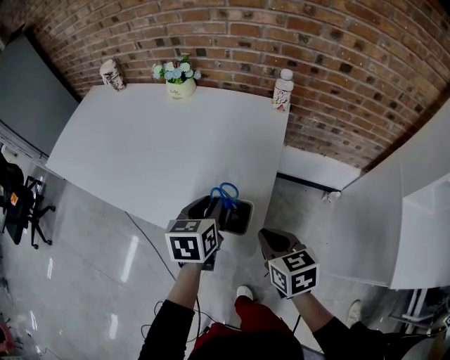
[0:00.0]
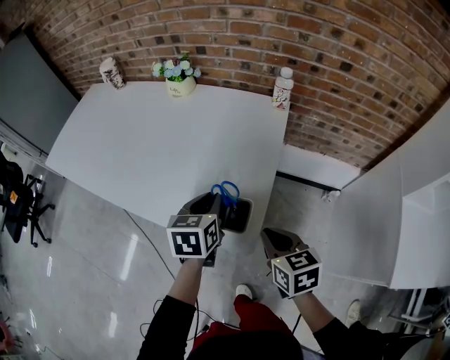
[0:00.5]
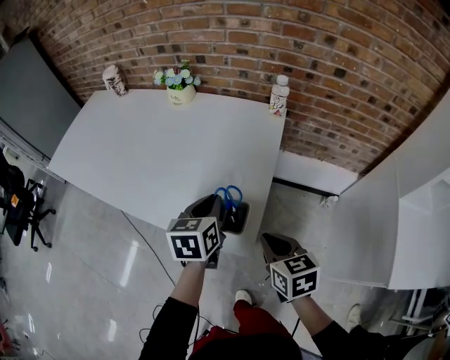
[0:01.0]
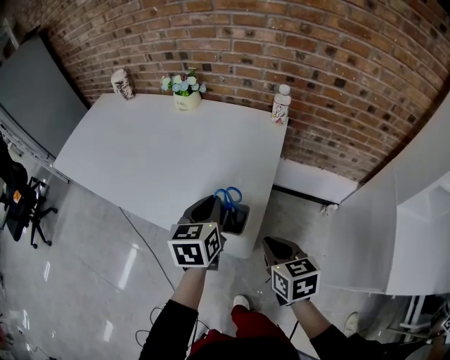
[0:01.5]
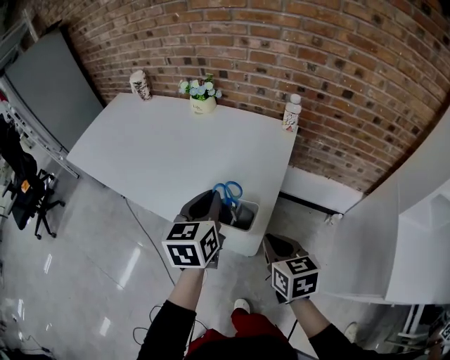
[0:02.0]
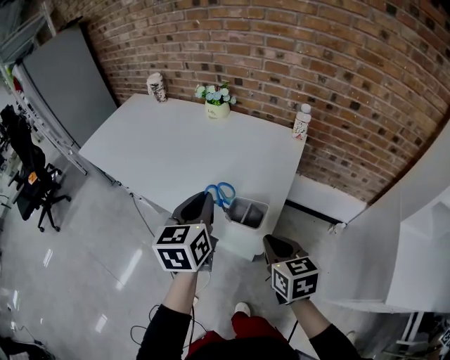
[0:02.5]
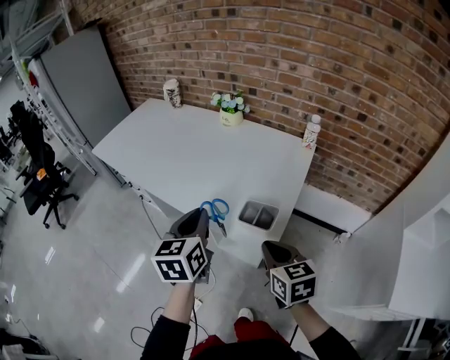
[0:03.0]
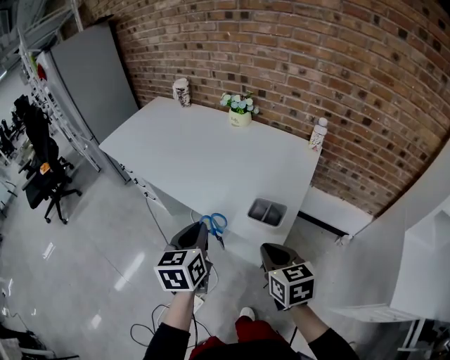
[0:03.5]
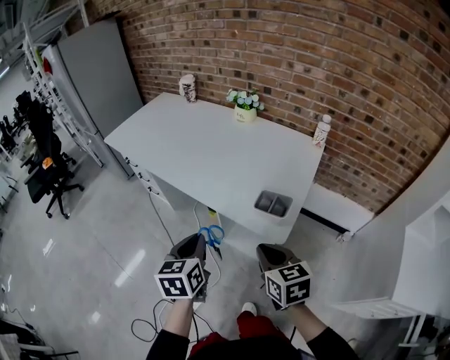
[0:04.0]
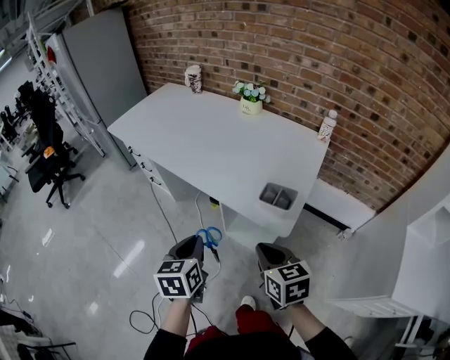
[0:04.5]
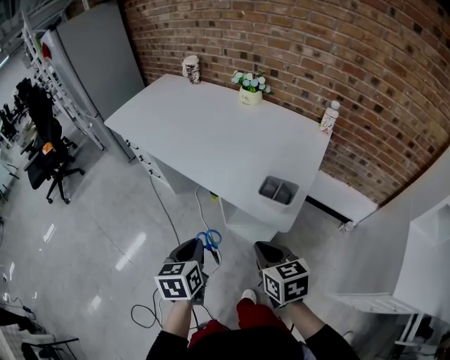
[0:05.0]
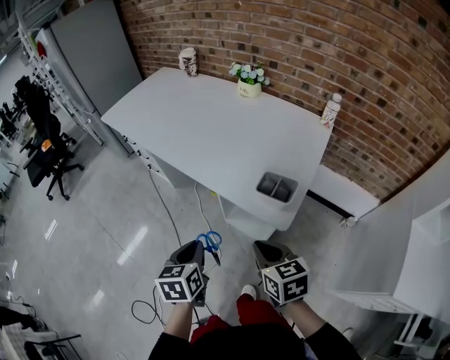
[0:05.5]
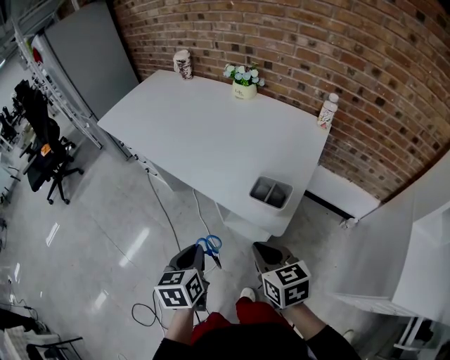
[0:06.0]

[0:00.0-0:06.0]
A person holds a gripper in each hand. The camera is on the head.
0:00.0 to 0:02.0: The left gripper is displaced upward by roughly 10 cm, and closes.
0:02.0 to 0:04.0: The left gripper shifts roughly 25 cm to the left and backward. The right gripper travels to the left and backward by approximately 15 cm.
0:04.0 to 0:06.0: The left gripper goes some 5 cm downward.

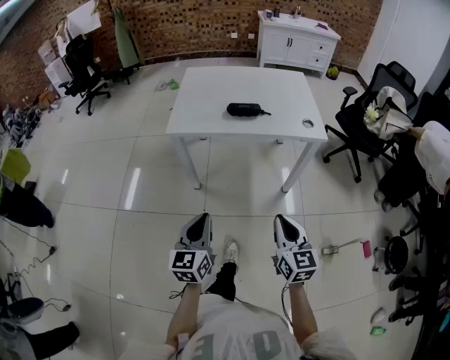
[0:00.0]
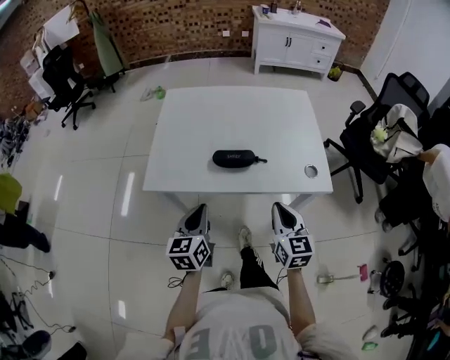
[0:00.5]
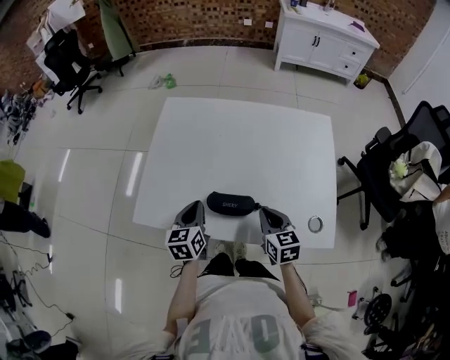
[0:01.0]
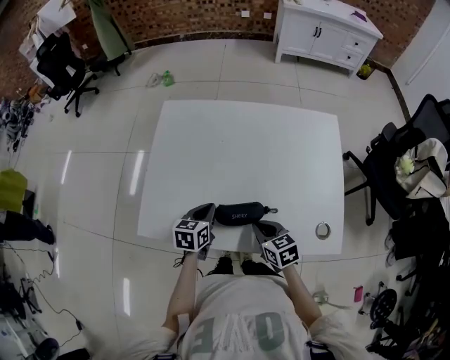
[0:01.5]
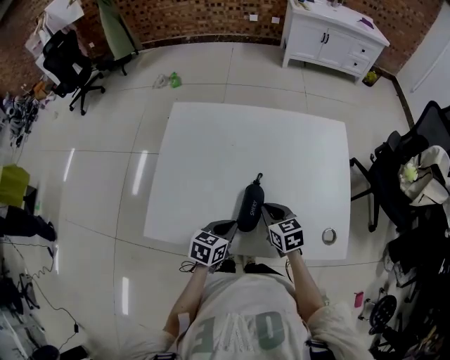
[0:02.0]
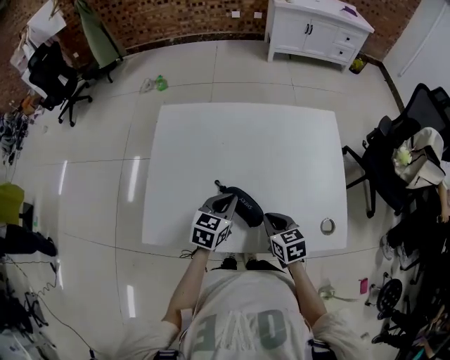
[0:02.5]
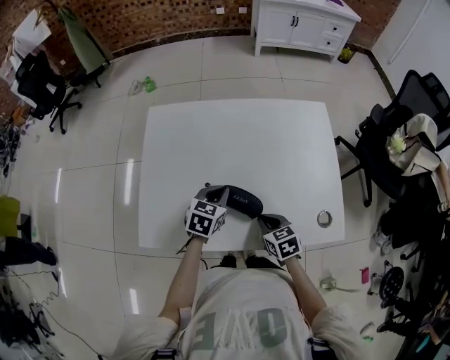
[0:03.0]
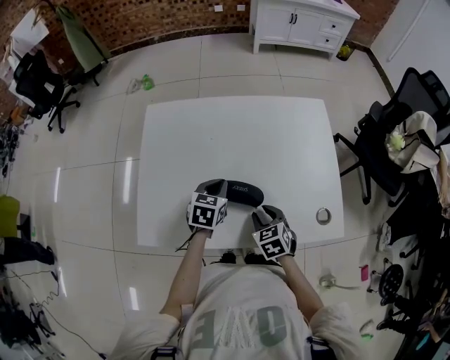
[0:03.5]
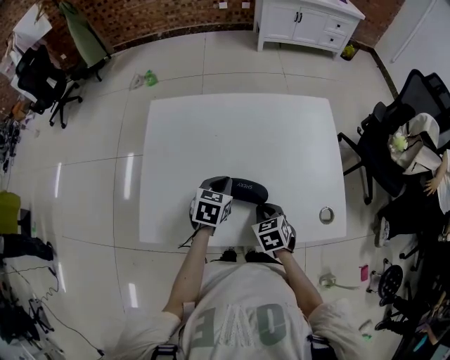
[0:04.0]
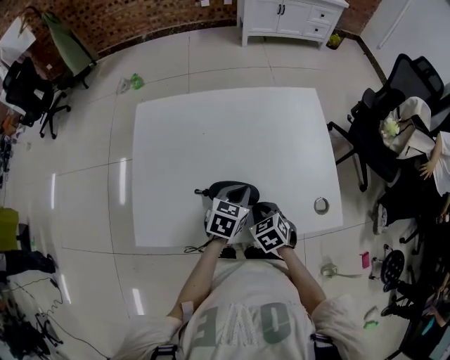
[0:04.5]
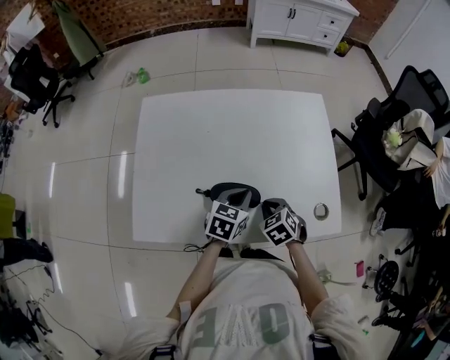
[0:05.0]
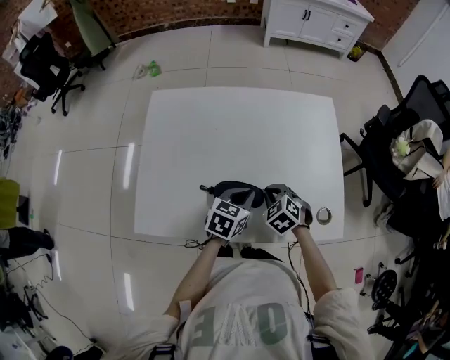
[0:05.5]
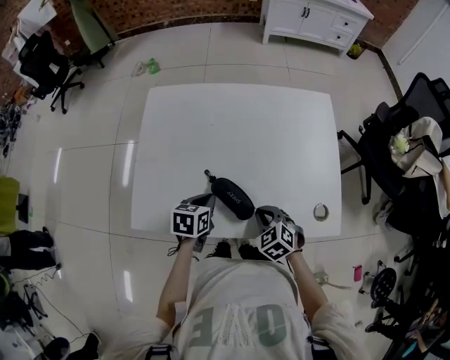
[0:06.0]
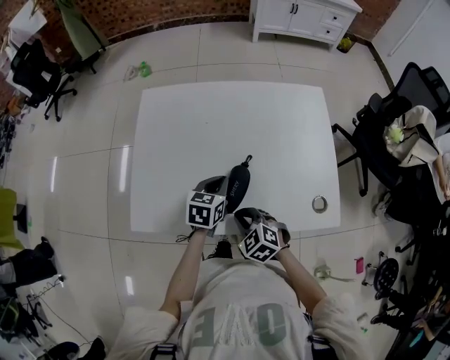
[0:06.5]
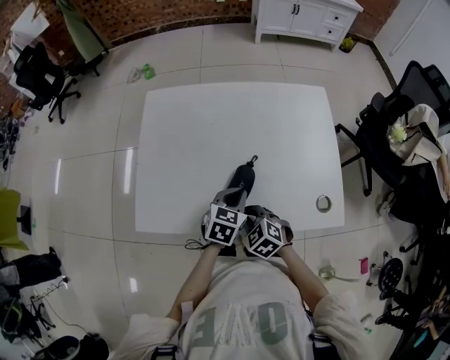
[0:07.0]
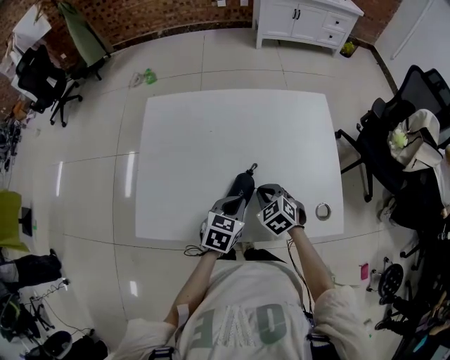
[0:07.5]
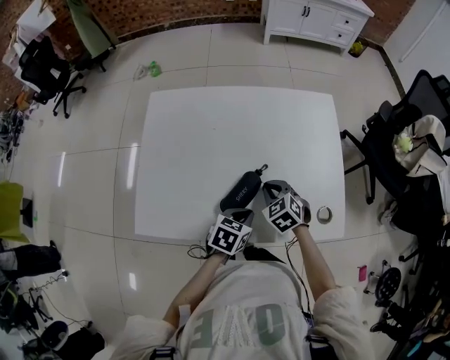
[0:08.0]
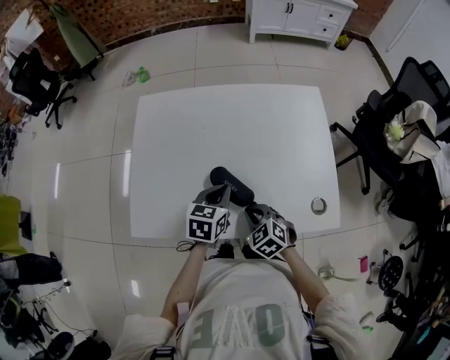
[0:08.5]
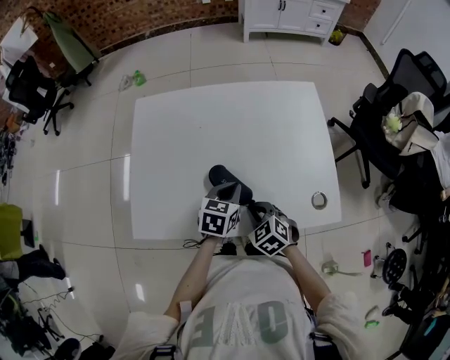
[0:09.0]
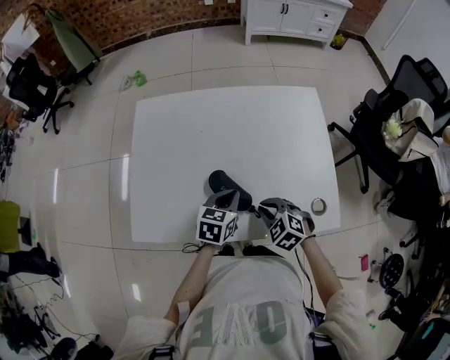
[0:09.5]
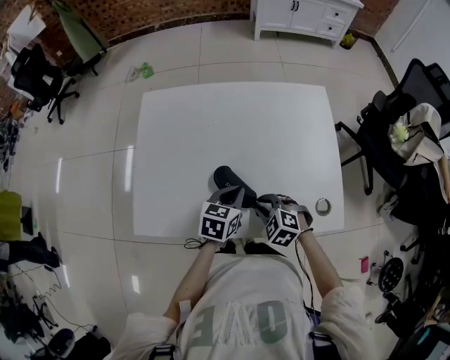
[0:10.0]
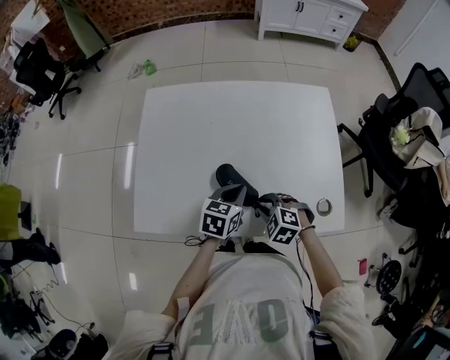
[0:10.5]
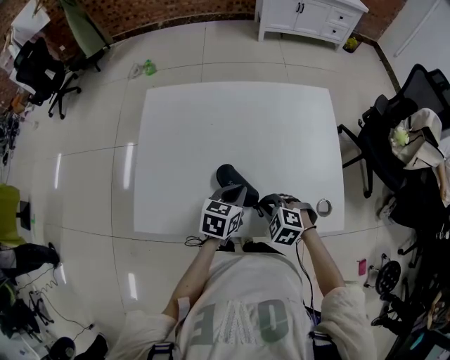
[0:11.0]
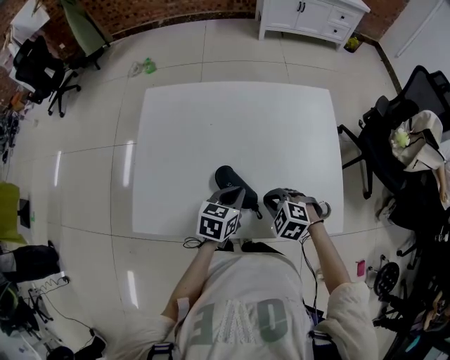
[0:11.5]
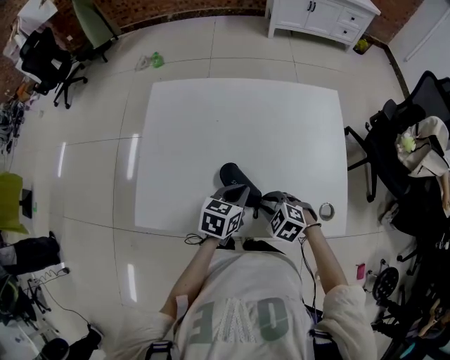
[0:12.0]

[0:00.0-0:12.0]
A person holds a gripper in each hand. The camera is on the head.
0:00.0 to 0:02.0: Both grippers are carried forward, about 60 cm. The left gripper changes its angle by some 40 degrees. The right gripper swivels approximately 30 degrees.
0:02.0 to 0:04.0: The left gripper is displaced forward by approximately 10 cm. The right gripper shifts by approximately 5 cm, swivels approximately 20 degrees, and opens and closes again.
0:04.0 to 0:06.0: The right gripper rotates about 30 degrees. Meanwhile the left gripper shifts about 10 cm backward, and reaches approximately 10 cm to the right, then returns.
0:06.0 to 0:08.0: The right gripper moves forward, roughly 10 cm. The left gripper heads to the right, covering roughly 10 cm.
0:08.0 to 0:10.0: The right gripper goes approximately 10 cm backward, and swivels some 20 degrees. The left gripper is displaced forward by some 5 cm.
0:10.0 to 0:12.0: The grippers move only a little.

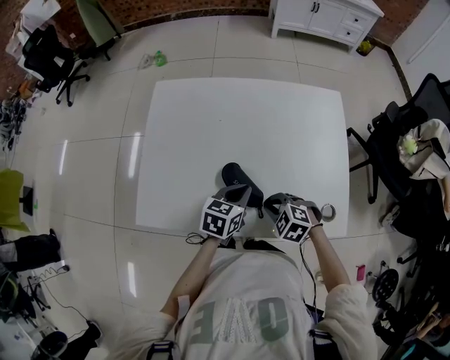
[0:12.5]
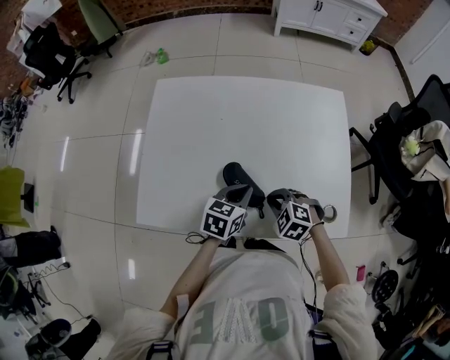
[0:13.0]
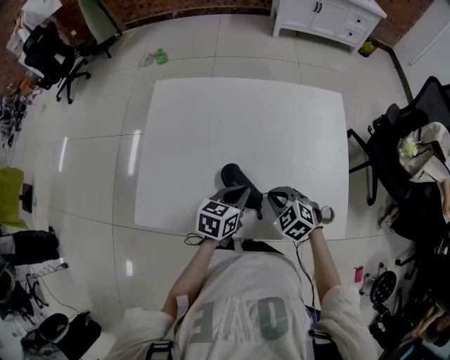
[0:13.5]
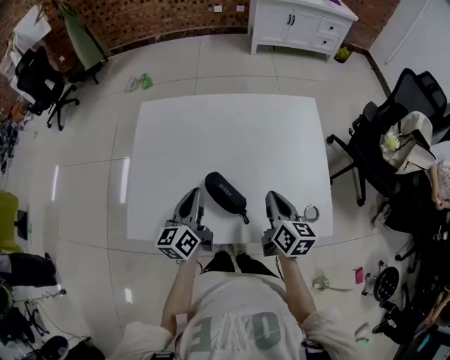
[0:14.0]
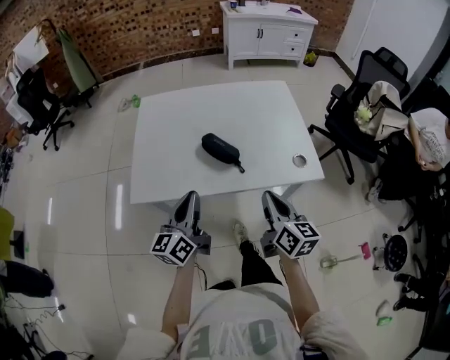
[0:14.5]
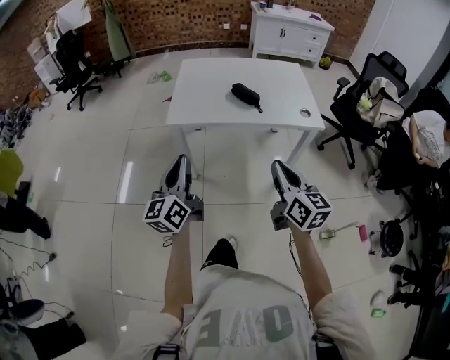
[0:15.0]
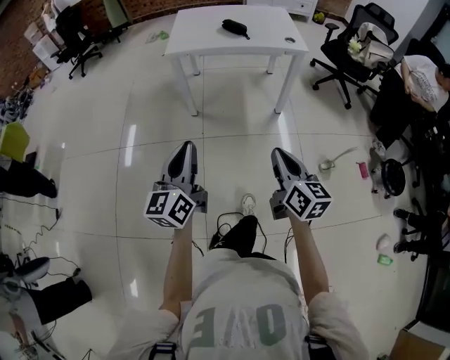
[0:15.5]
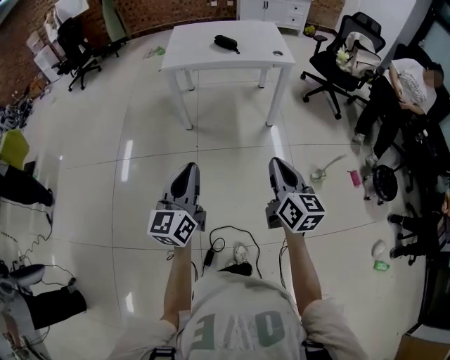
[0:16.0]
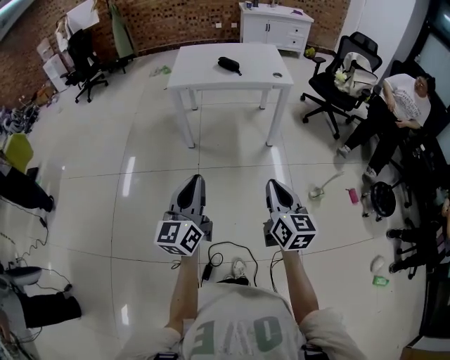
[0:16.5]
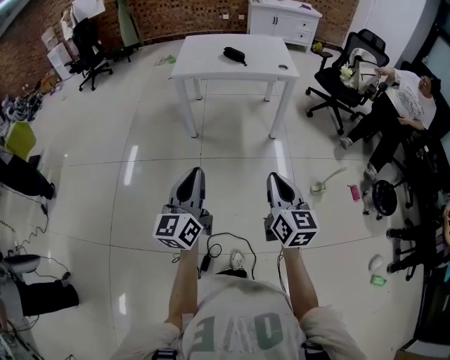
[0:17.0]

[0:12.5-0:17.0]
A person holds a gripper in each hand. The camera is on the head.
0:12.5 to 0:14.5: The left gripper heads backward, to the left and upward, covering some 30 cm, and tips its fingers upward by some 40 degrees, while the right gripper goes some 25 cm backward and upward, and angles its fingers upward, by some 50 degrees.
0:14.5 to 0:17.0: The pair of grippers is taken backward, some 80 cm.

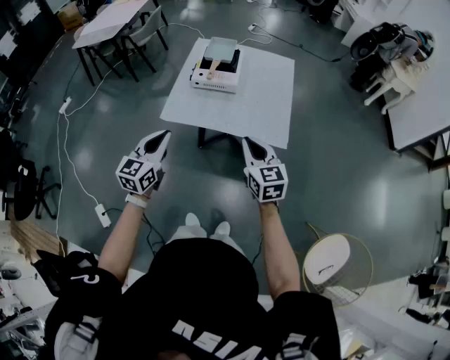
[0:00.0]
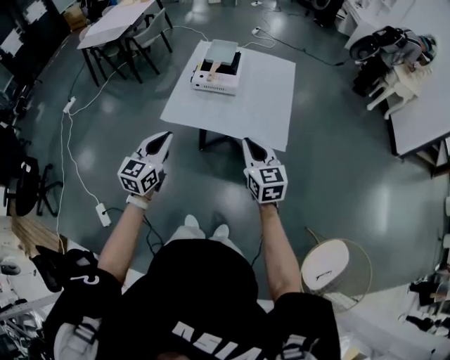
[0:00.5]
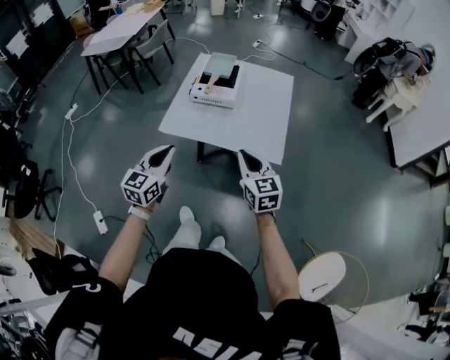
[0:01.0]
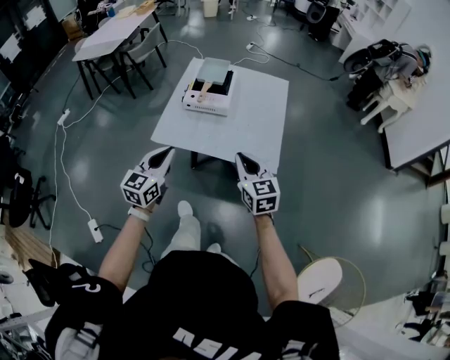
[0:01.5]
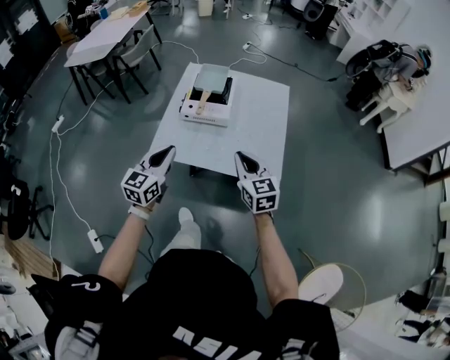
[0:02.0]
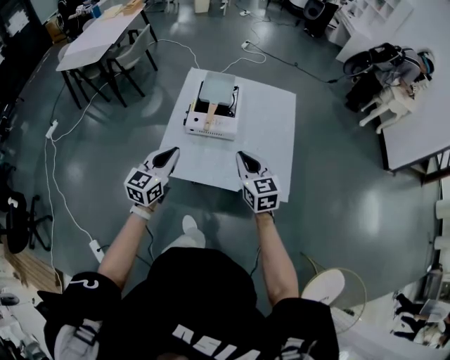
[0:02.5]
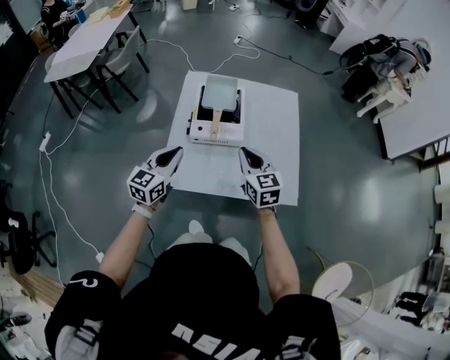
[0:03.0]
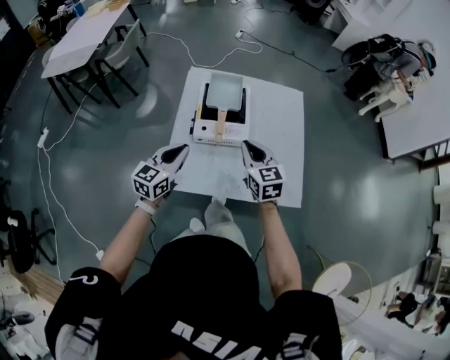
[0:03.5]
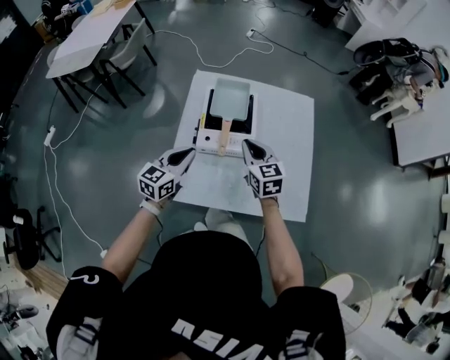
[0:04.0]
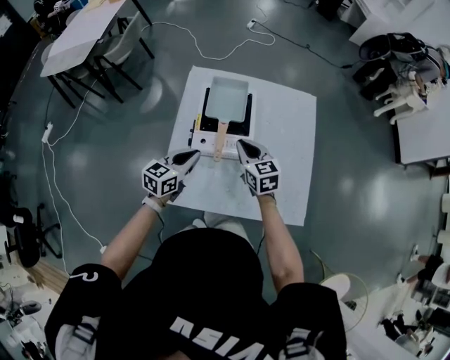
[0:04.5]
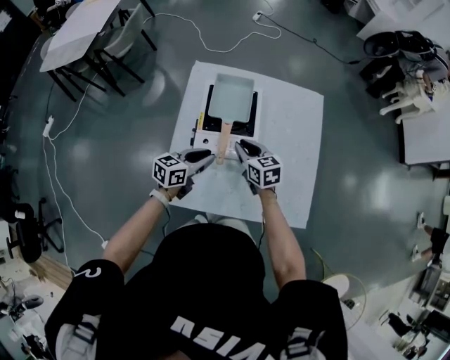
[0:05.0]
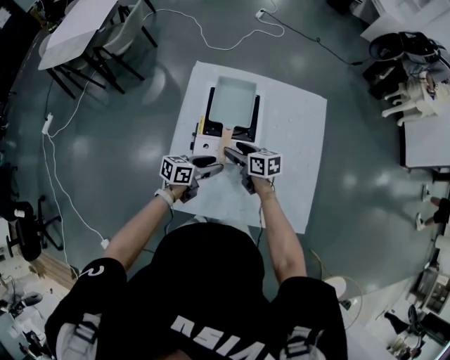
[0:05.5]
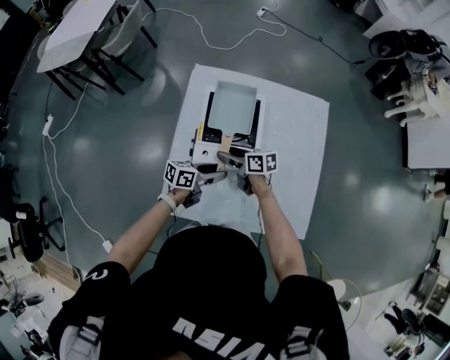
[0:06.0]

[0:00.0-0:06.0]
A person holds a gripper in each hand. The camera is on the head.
0:00.0 to 0:02.0: Both grippers travel together forward, about 15 cm.
0:02.0 to 0:04.0: The left gripper goes about 25 cm forward. The right gripper travels forward and to the left by roughly 35 cm.
0:04.0 to 0:06.0: Both grippers move downward, about 15 cm. The left gripper turns by approximately 50 degrees, and opens its fingers. Meanwhile the right gripper rotates some 50 degrees, and opens.
